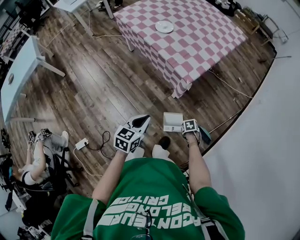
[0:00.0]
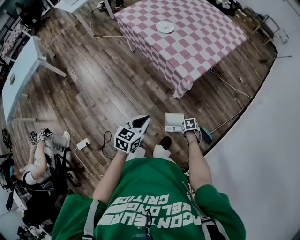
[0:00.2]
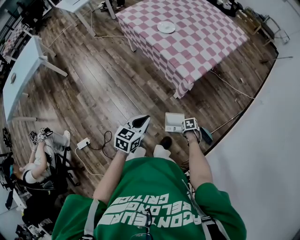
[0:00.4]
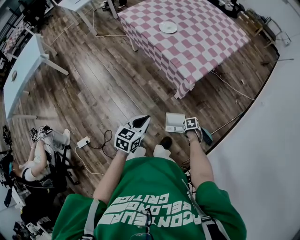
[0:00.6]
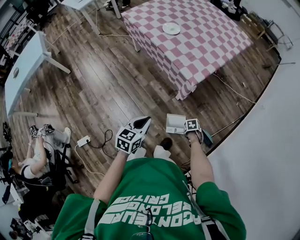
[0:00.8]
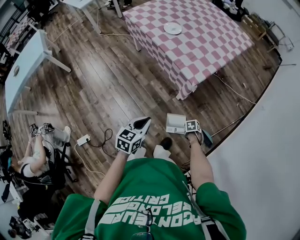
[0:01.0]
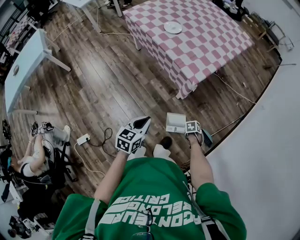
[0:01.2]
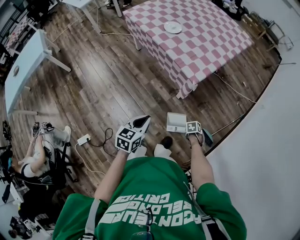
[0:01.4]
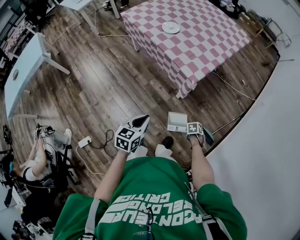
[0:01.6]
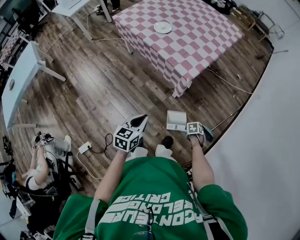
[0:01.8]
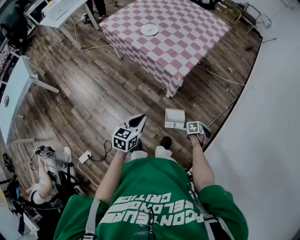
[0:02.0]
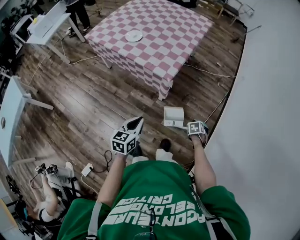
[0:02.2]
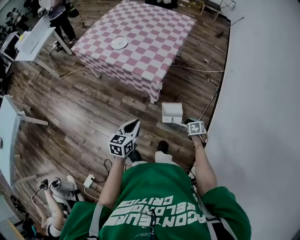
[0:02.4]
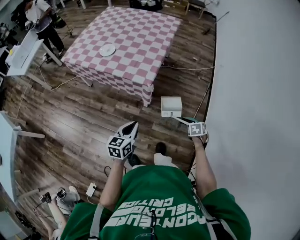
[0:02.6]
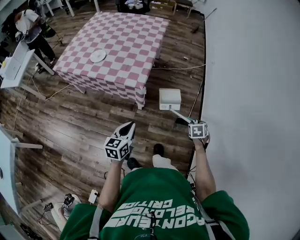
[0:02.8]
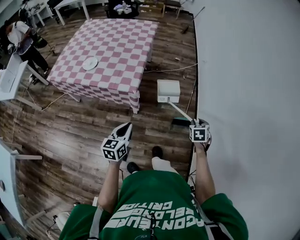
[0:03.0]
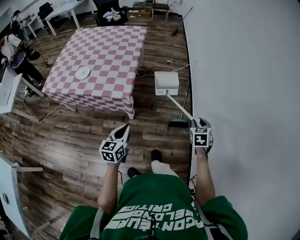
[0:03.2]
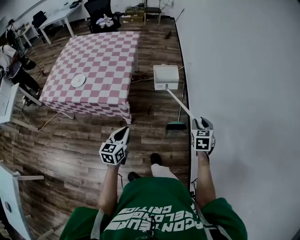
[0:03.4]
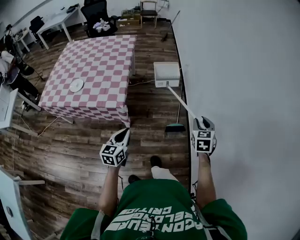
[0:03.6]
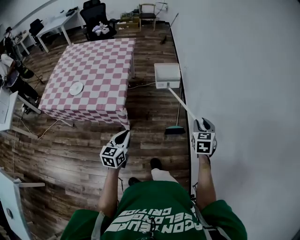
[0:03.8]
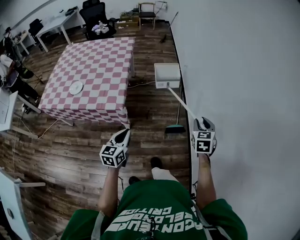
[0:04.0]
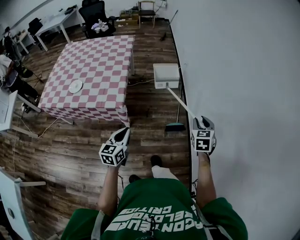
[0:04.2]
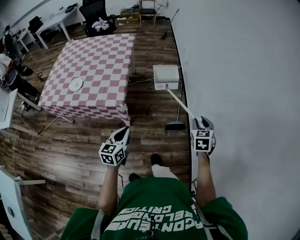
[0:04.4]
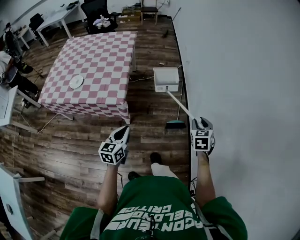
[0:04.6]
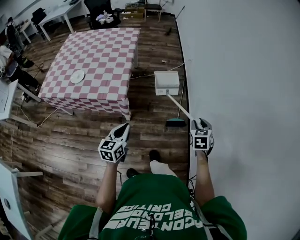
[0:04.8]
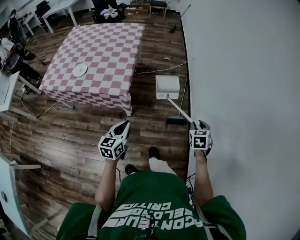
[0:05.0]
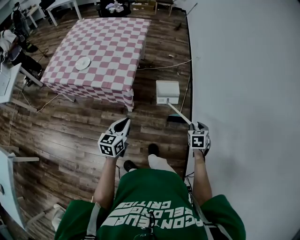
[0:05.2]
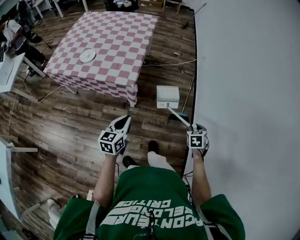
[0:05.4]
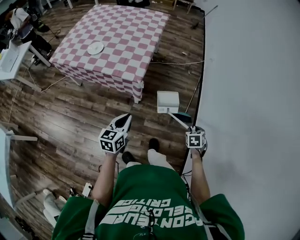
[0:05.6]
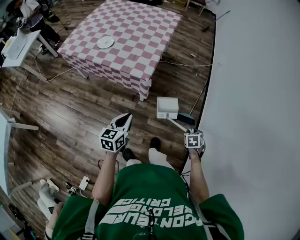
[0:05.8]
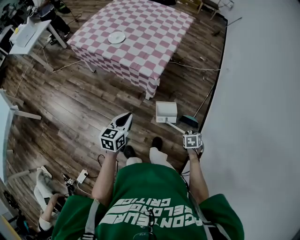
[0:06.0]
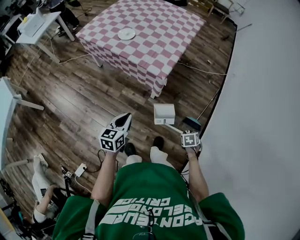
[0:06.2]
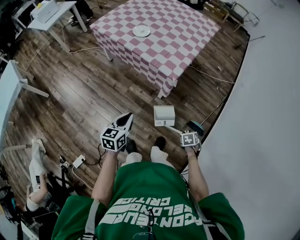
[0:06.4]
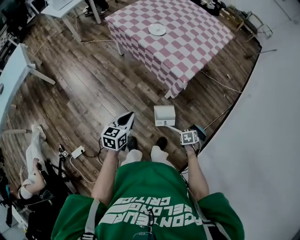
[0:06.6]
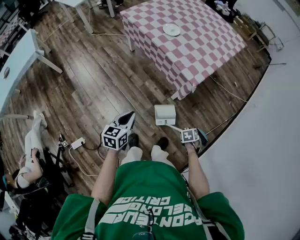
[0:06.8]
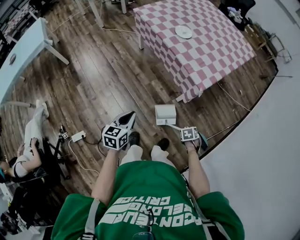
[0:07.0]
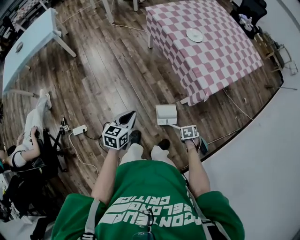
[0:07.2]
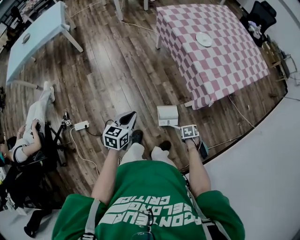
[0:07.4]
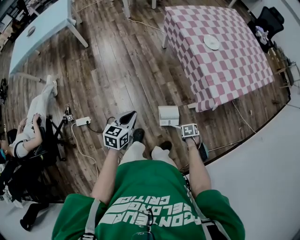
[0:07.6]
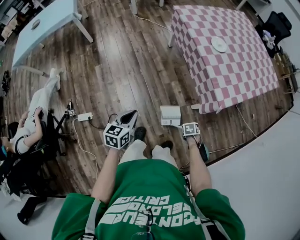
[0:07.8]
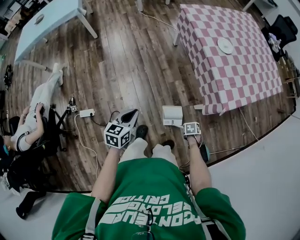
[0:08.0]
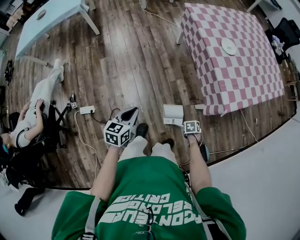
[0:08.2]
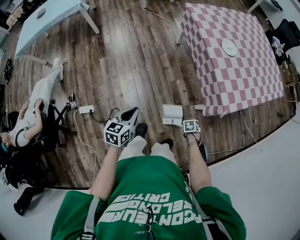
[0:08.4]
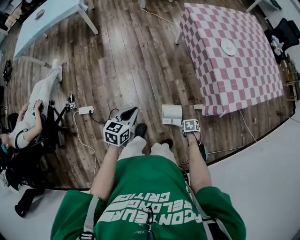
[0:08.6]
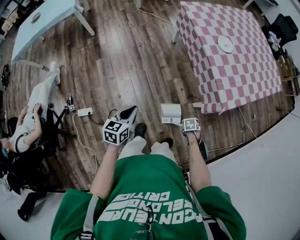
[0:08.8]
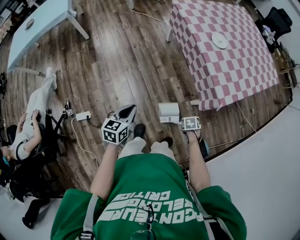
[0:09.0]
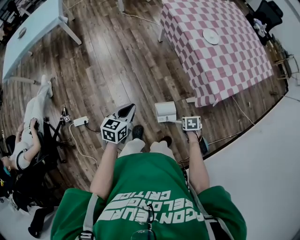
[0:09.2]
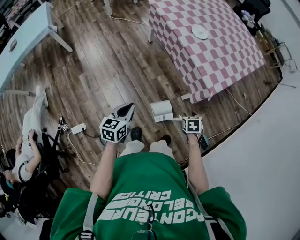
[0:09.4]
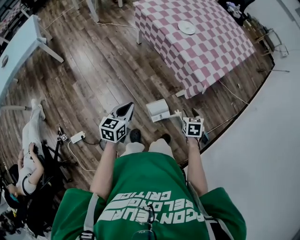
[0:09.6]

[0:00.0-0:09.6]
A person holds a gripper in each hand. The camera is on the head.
0:00.0 to 0:01.6: The right gripper closes up.
0:01.6 to 0:03.2: The left gripper changes place by about 15 cm, and changes its angle by some 30 degrees. Meanwhile the right gripper goes some 35 cm upward, and tips its fingers upward by about 40 degrees.
0:03.2 to 0:04.8: The right gripper moves about 10 cm upward and comes back.
0:04.8 to 0:06.4: The left gripper changes place by about 20 cm, and rotates roughly 30 degrees. Meanwhile the right gripper travels downward by some 25 cm, and tilts its fingers roughly 40 degrees downward.
0:06.4 to 0:08.0: The left gripper ends up about 20 cm from where it was, and swivels about 30 degrees. Meanwhile the right gripper shifts by some 25 cm, and rotates about 30 degrees.
0:08.0 to 0:09.6: The right gripper travels upward by approximately 20 cm, changes its angle by about 30 degrees, and opens its fingers; the left gripper shifts by about 5 cm.

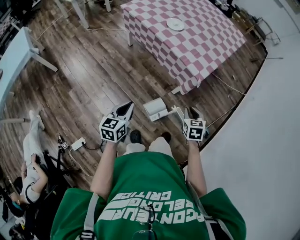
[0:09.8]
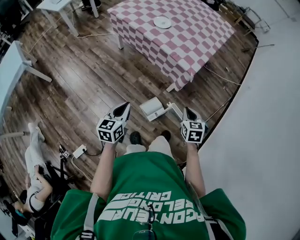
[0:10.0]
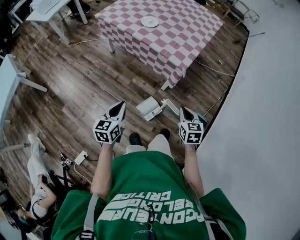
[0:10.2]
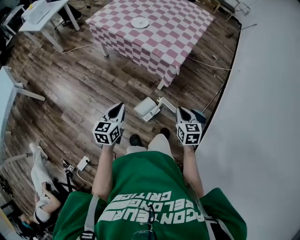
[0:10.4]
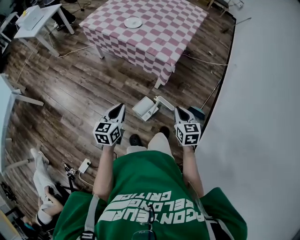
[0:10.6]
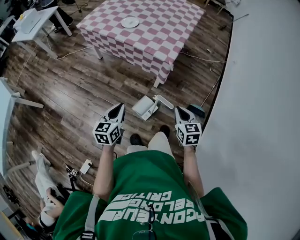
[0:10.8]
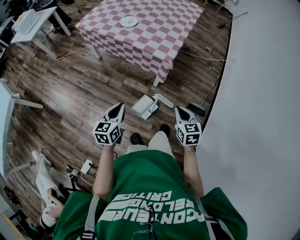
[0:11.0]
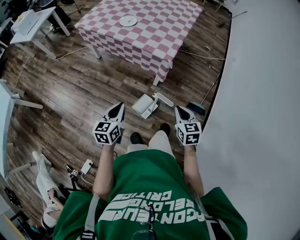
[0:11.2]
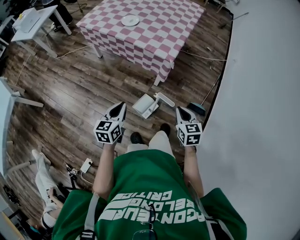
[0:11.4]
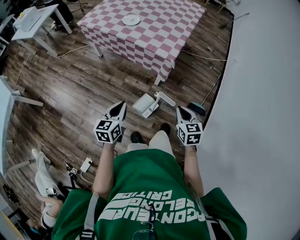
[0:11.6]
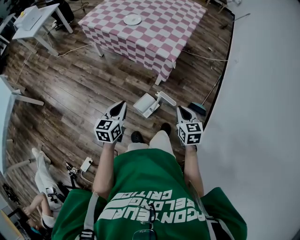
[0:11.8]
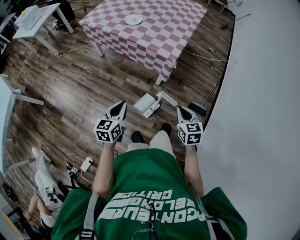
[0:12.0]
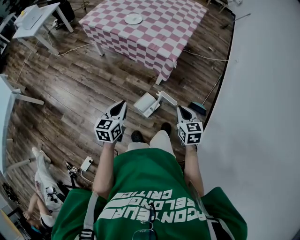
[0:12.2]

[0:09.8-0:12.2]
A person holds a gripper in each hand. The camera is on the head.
0:09.8 to 0:11.0: The right gripper shifts approximately 10 cm backward and to the right. Meanwhile the left gripper heads to the right, covering roughly 5 cm.
0:11.0 to 0:12.2: The grippers move only a little.

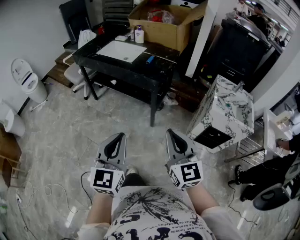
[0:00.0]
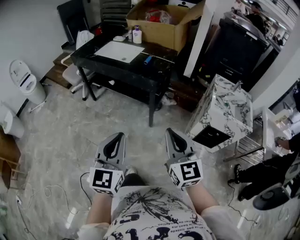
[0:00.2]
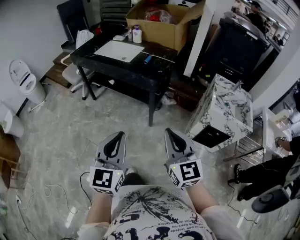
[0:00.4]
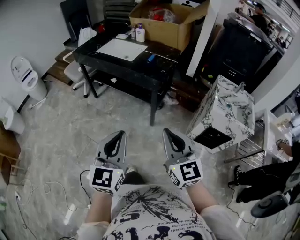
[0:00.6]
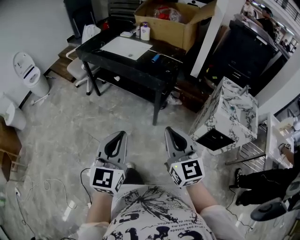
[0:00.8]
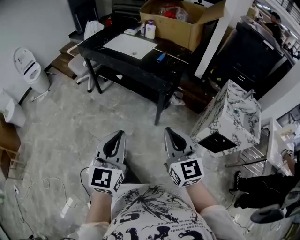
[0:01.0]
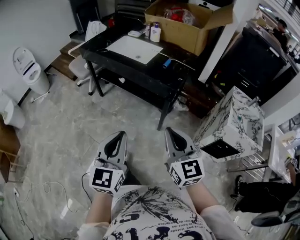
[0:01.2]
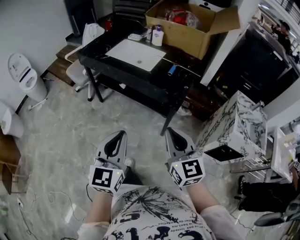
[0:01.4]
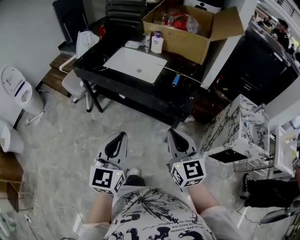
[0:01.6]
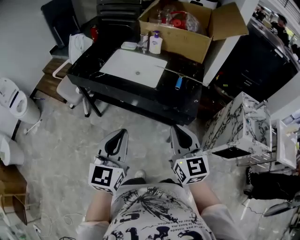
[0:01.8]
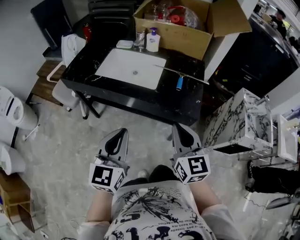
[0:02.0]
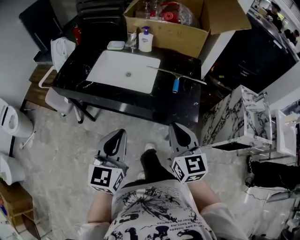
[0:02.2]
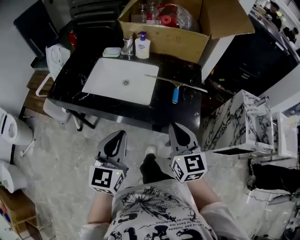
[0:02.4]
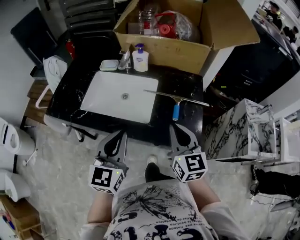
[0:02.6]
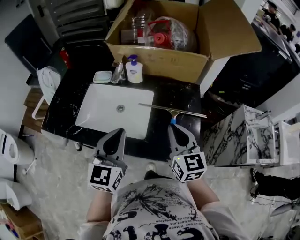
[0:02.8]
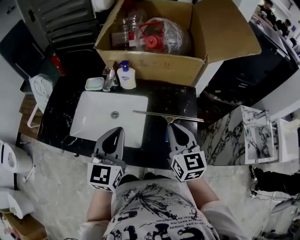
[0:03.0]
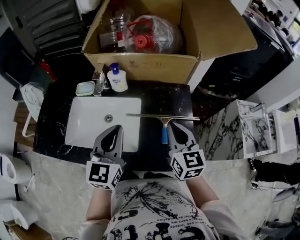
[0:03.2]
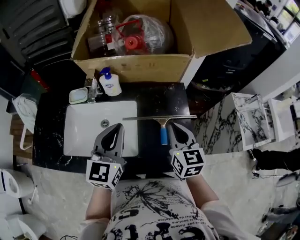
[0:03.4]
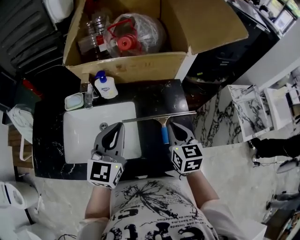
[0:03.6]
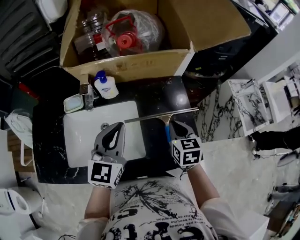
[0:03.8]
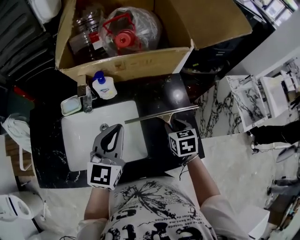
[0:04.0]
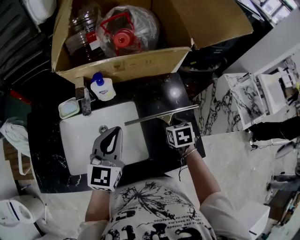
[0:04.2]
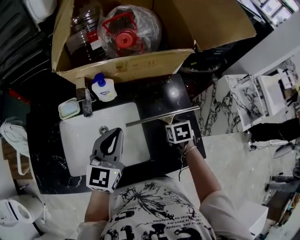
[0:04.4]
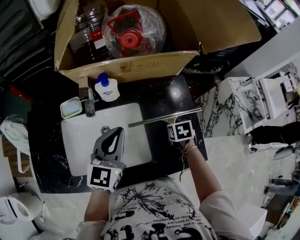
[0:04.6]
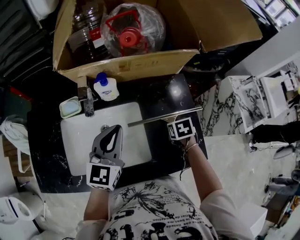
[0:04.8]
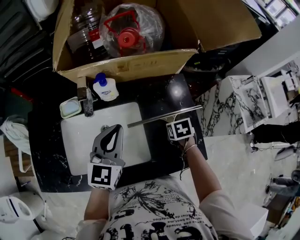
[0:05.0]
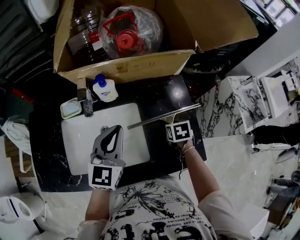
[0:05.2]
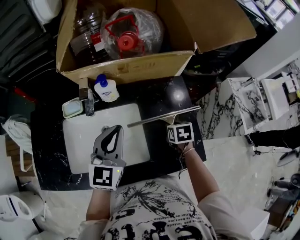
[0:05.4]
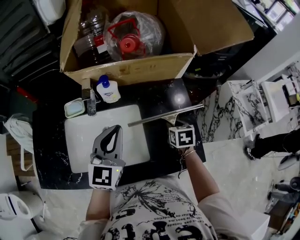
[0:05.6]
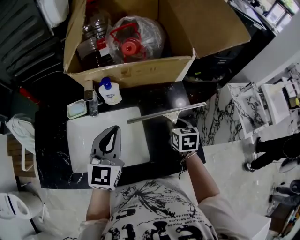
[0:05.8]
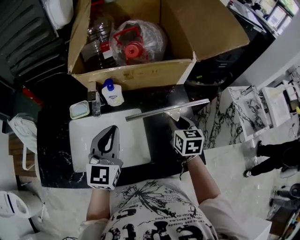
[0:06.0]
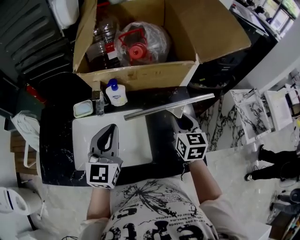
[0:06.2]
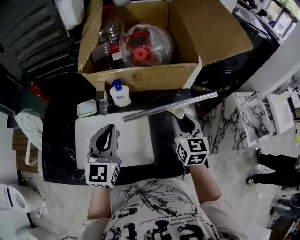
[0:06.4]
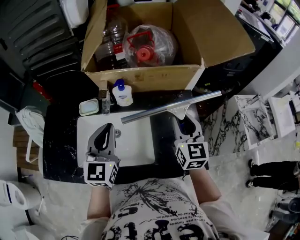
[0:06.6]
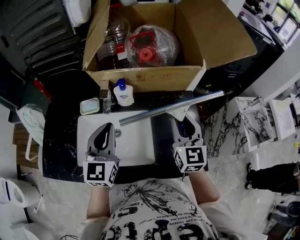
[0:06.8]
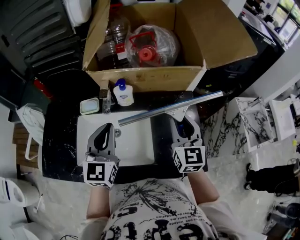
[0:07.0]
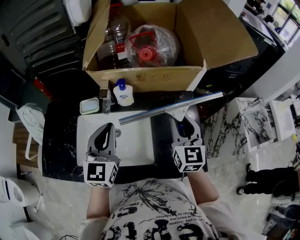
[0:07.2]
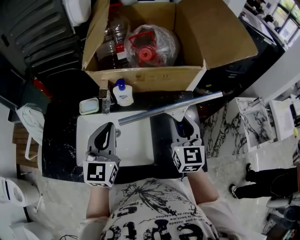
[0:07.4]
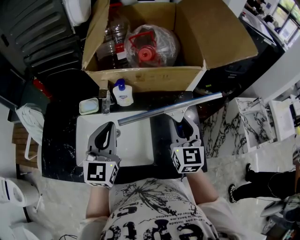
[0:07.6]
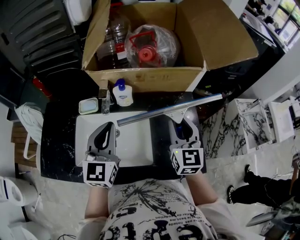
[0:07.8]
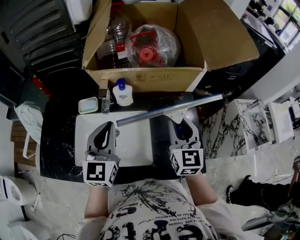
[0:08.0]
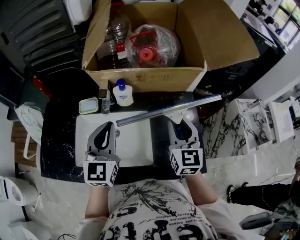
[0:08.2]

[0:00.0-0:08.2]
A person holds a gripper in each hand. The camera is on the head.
0:00.0 to 0:01.6: Both grippers move forward and to the left, roughly 35 cm.
0:01.6 to 0:03.2: Both grippers are carried forward, some 50 cm. The right gripper changes its angle by about 30 degrees, while the left gripper swivels approximately 20 degrees.
0:03.2 to 0:05.0: The right gripper travels downward by approximately 20 cm, points its fingers some 60 degrees further downward, and opens up. Meanwhile the left gripper moves forward, some 10 cm.
0:05.0 to 0:06.6: The left gripper heads to the left and upward, covering about 10 cm. Meanwhile the right gripper heads upward, covering some 25 cm, and tips its fingers upward by roughly 60 degrees.
0:06.6 to 0:08.2: The grippers stay close to where they were, moving slightly.

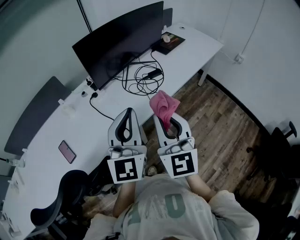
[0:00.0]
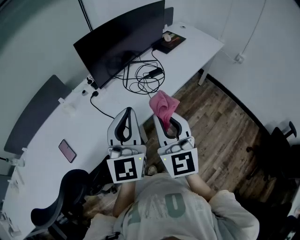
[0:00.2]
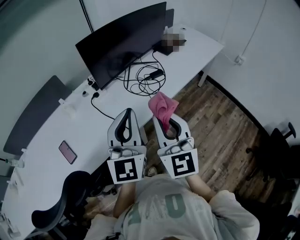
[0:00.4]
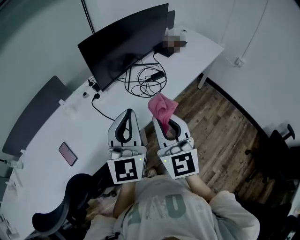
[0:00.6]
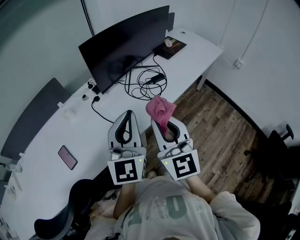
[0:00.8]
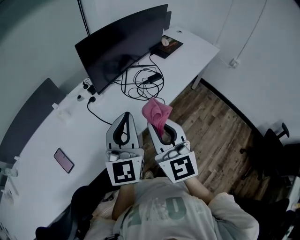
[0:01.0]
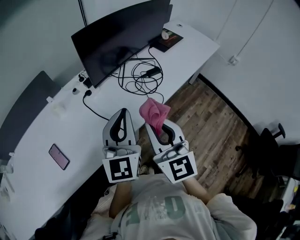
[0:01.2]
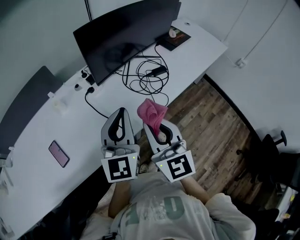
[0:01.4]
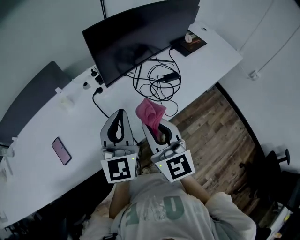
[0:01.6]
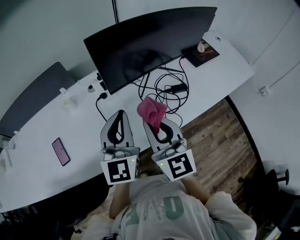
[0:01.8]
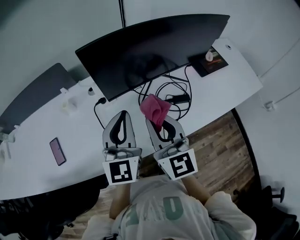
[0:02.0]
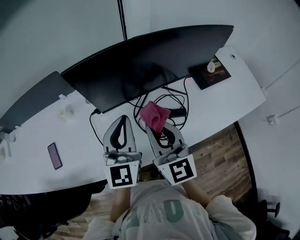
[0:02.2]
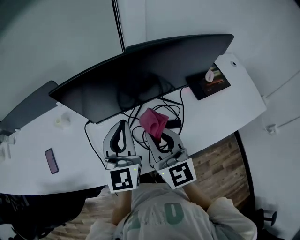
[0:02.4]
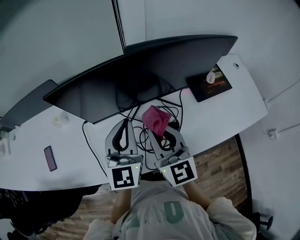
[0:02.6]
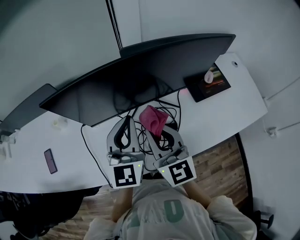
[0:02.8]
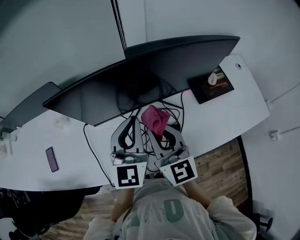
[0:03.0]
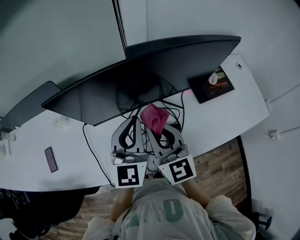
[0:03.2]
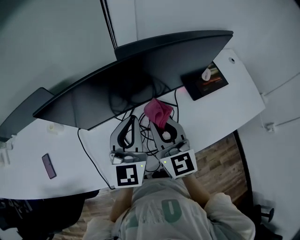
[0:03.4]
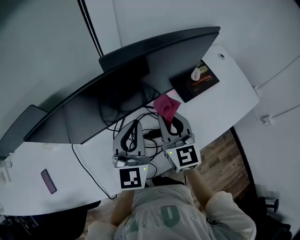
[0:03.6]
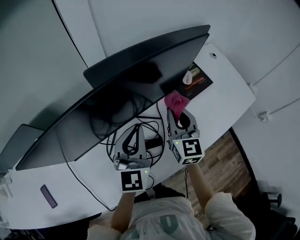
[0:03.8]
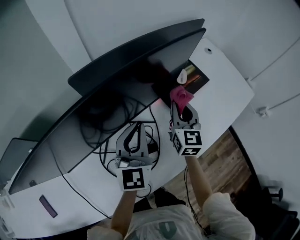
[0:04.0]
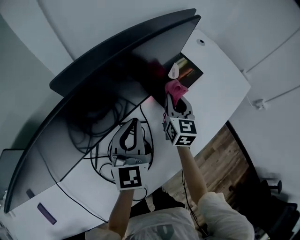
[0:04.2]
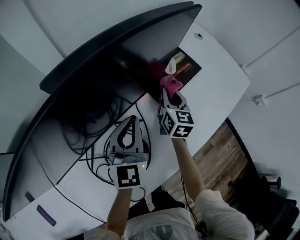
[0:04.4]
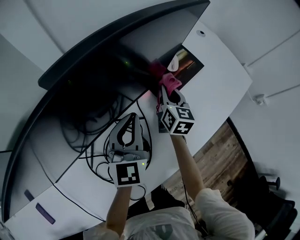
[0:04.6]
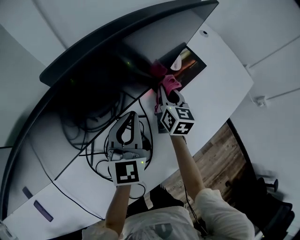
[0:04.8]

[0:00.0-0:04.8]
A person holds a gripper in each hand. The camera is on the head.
0:00.0 to 0:01.6: The grippers both shift forward, to the left and downward by some 15 cm. The right gripper rotates approximately 20 degrees.
0:01.6 to 0:03.2: The right gripper shifts roughly 30 cm forward and to the right; the left gripper shifts some 25 cm to the right and forward.
0:03.2 to 0:04.8: The left gripper changes place by roughly 25 cm, and changes its angle by some 20 degrees. Meanwhile the right gripper moves about 40 cm, and rotates some 50 degrees.
